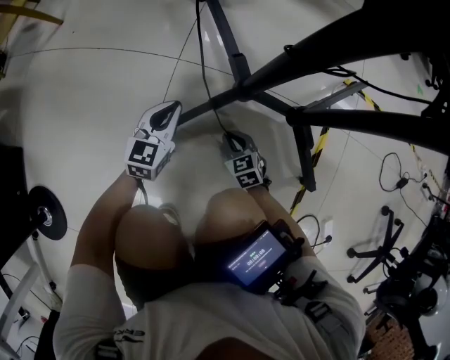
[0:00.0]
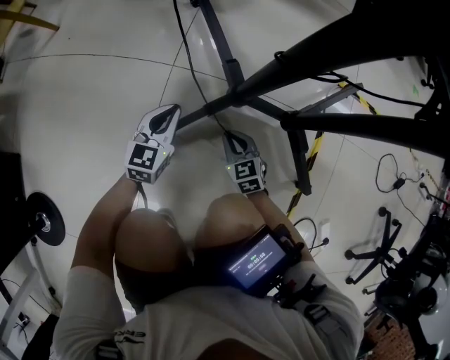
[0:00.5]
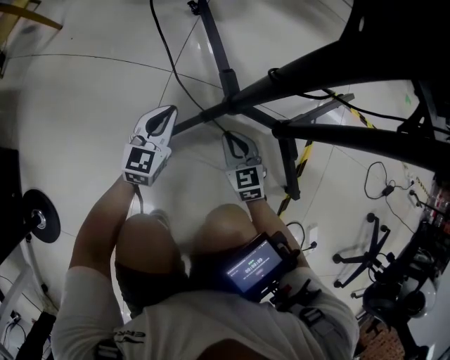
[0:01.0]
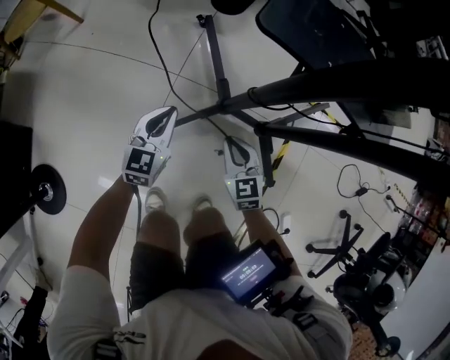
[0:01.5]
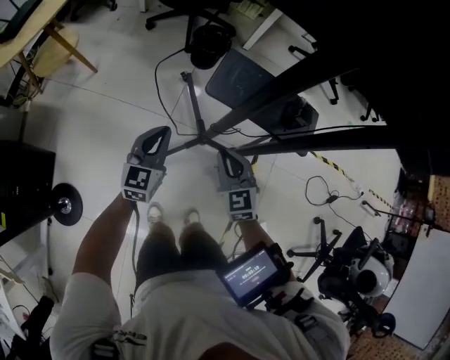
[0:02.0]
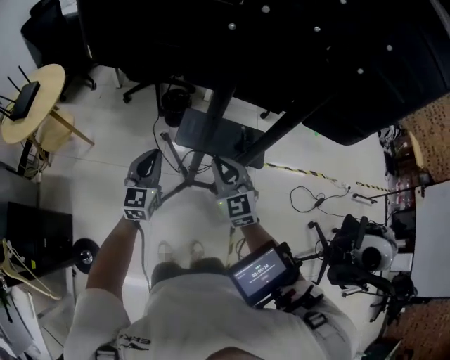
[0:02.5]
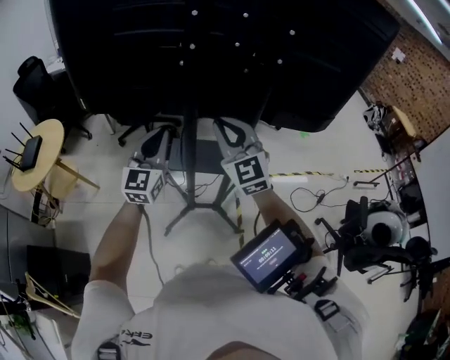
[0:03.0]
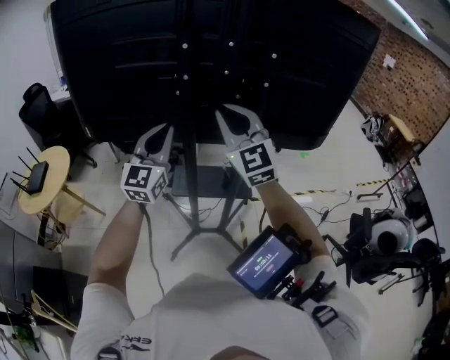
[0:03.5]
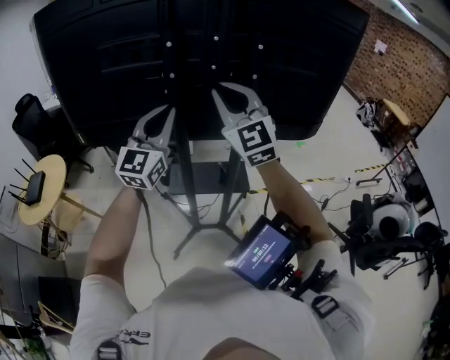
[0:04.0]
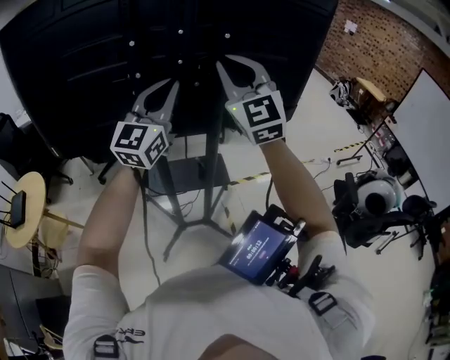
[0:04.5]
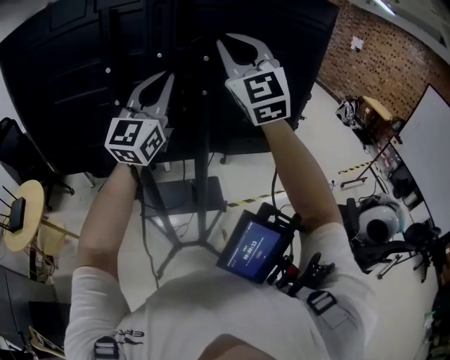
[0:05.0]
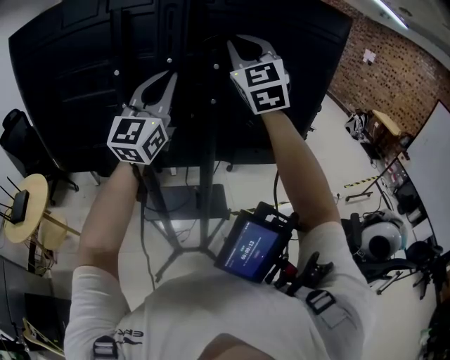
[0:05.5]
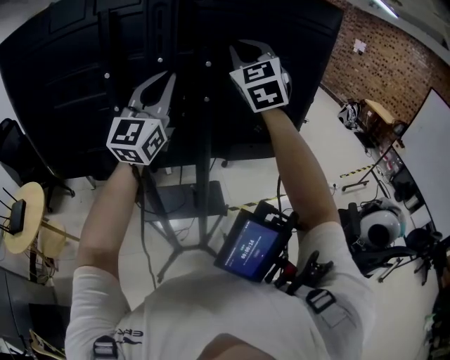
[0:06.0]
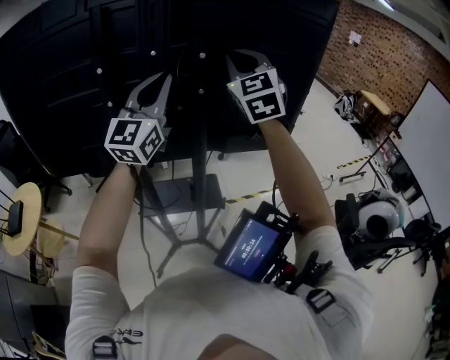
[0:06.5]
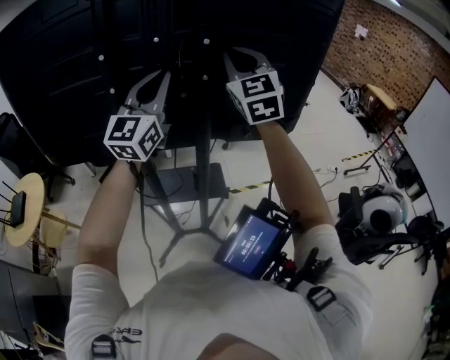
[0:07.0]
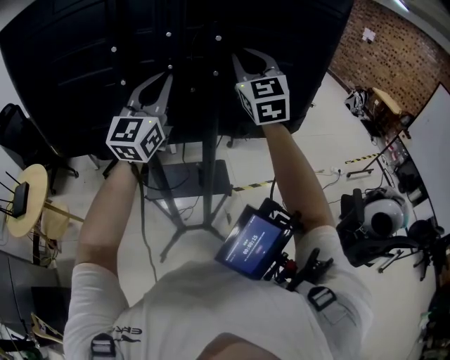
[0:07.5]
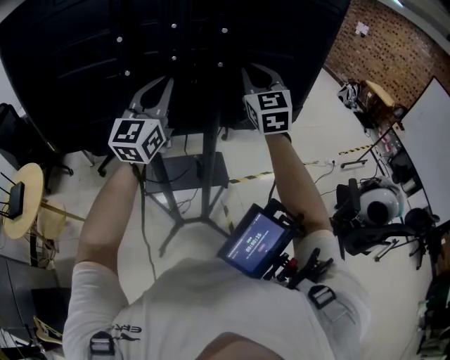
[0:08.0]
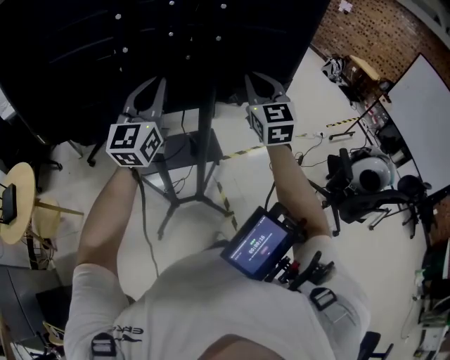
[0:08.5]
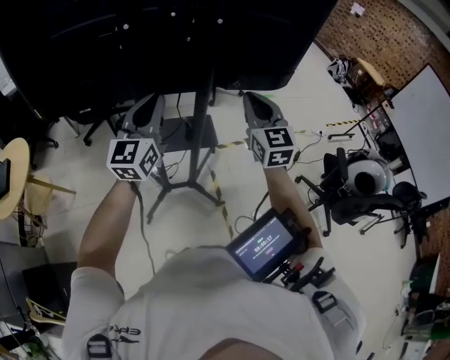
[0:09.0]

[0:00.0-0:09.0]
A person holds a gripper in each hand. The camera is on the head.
0:00.0 to 0:02.0: The grippers both shift upward by about 60 cm. The right gripper swivels about 30 degrees.
0:02.0 to 0:04.5: The two grippers go about 70 cm upward. The left gripper points its fingers about 40 degrees further upward. Meanwhile the right gripper angles its fingers upward, by some 40 degrees.
0:04.5 to 0:07.0: The left gripper shifts roughly 5 cm forward; the right gripper shifts roughly 15 cm forward and to the right.
0:07.0 to 0:09.0: The two grippers go some 25 cm downward and backward.

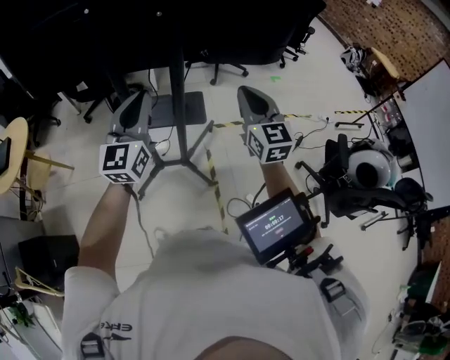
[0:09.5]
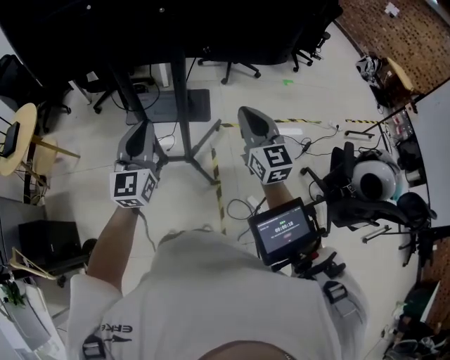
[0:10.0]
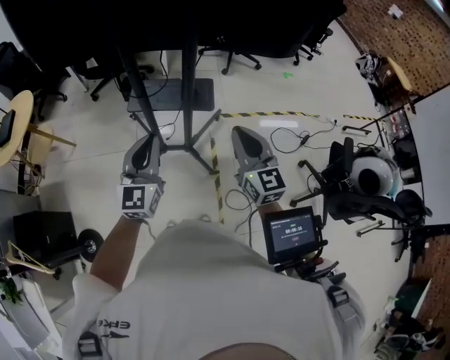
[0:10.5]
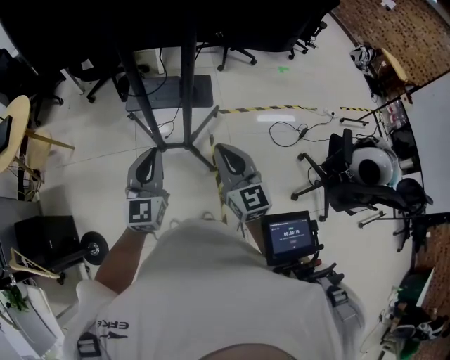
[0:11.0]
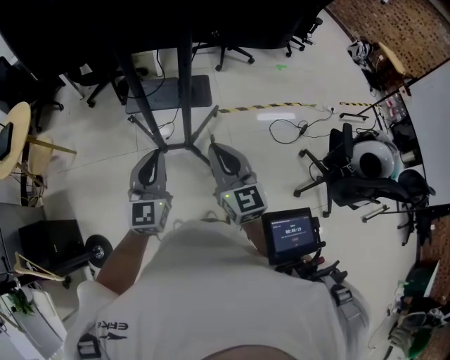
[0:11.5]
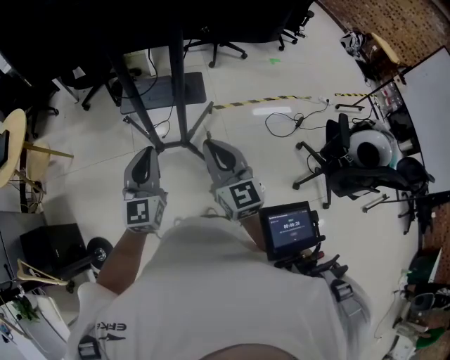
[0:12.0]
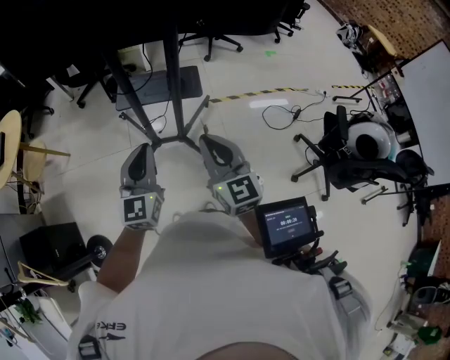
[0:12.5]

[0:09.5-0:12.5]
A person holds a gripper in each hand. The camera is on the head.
0:09.5 to 0:11.0: The right gripper goes approximately 20 cm backward, downward and to the left. Meanwhile the left gripper goes some 20 cm downward and backward.
0:11.0 to 0:12.5: There are only small adjustments of the grippers.

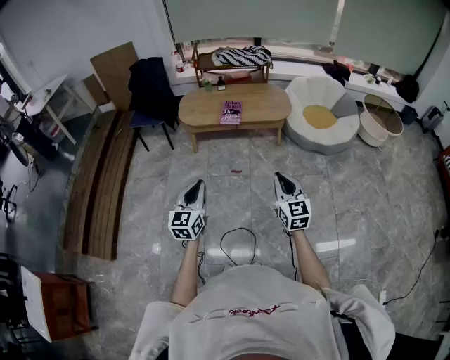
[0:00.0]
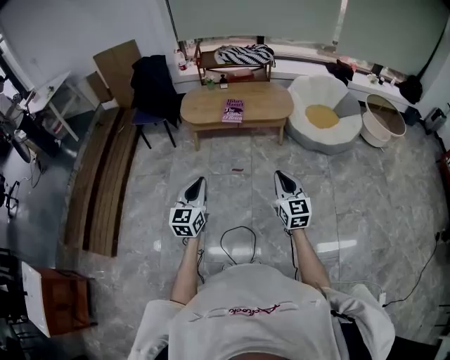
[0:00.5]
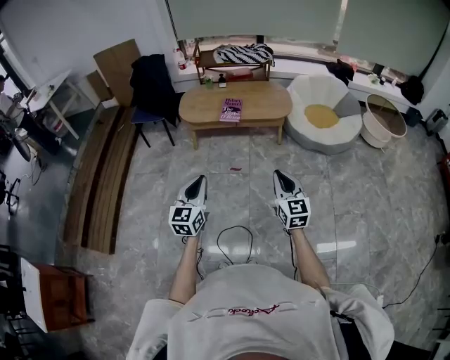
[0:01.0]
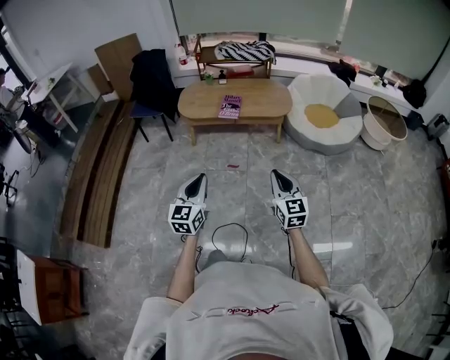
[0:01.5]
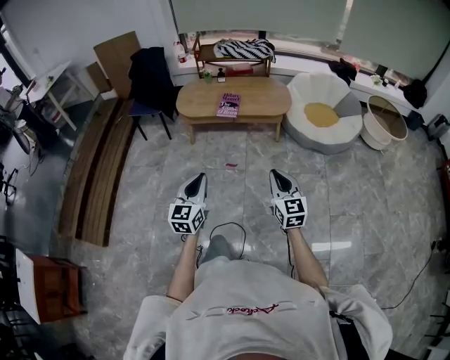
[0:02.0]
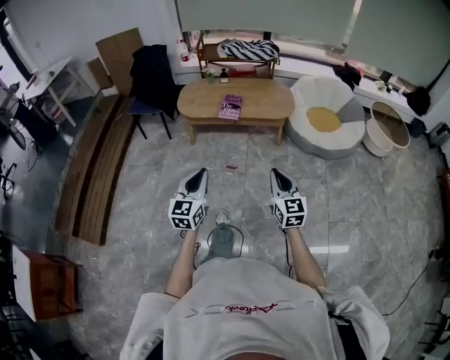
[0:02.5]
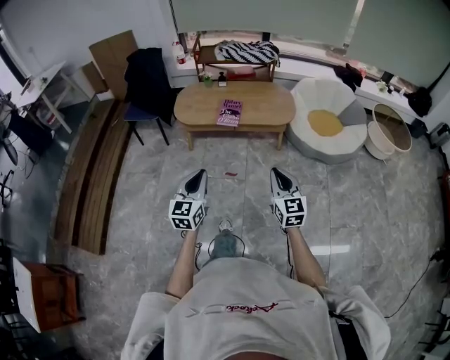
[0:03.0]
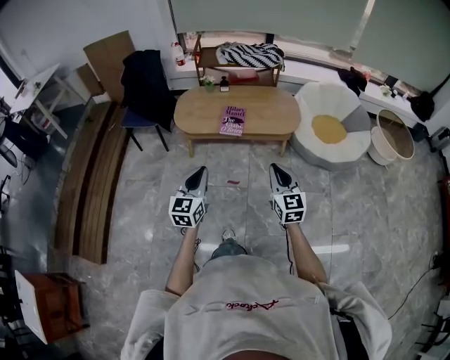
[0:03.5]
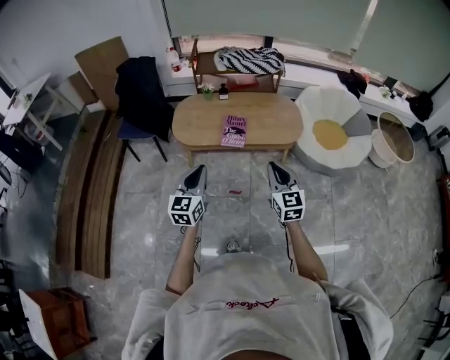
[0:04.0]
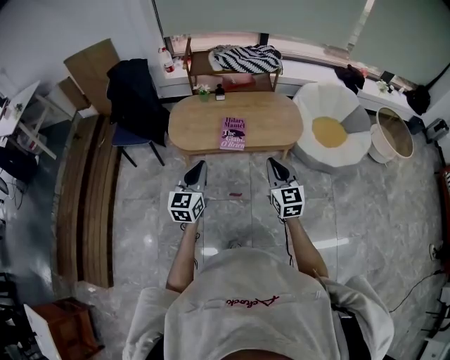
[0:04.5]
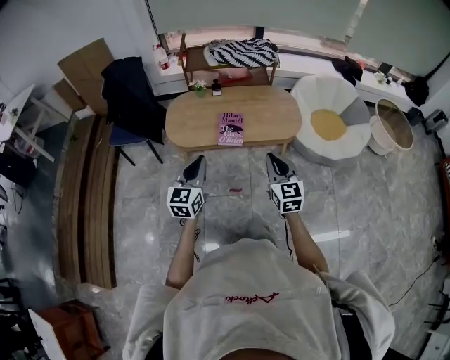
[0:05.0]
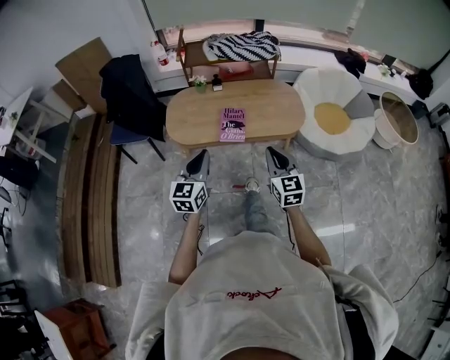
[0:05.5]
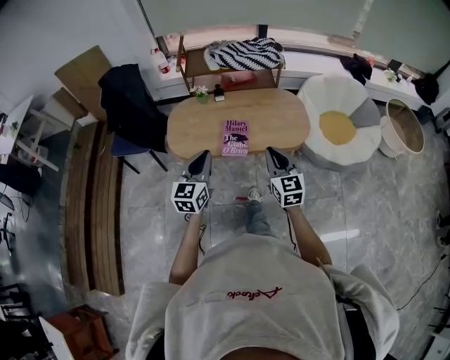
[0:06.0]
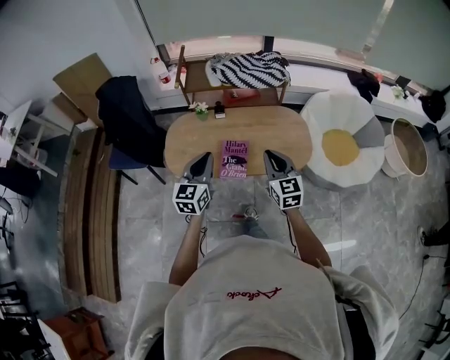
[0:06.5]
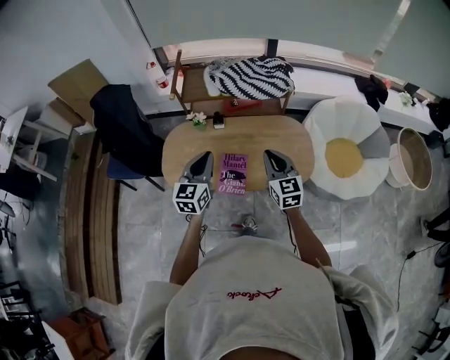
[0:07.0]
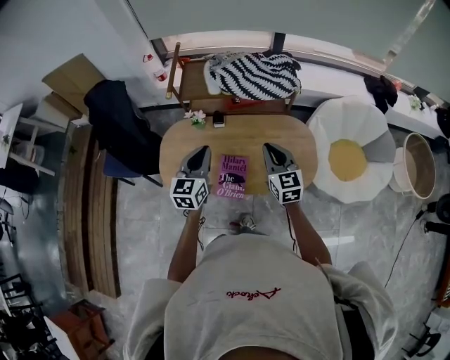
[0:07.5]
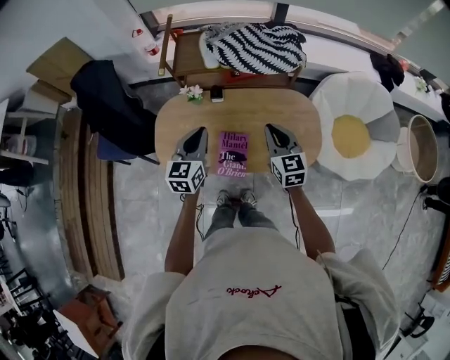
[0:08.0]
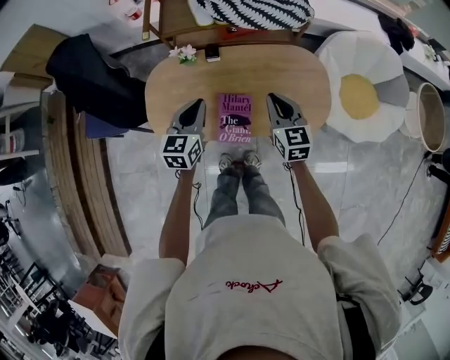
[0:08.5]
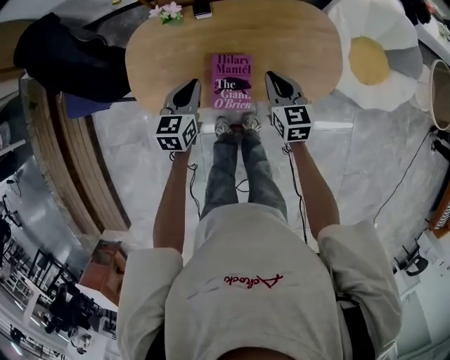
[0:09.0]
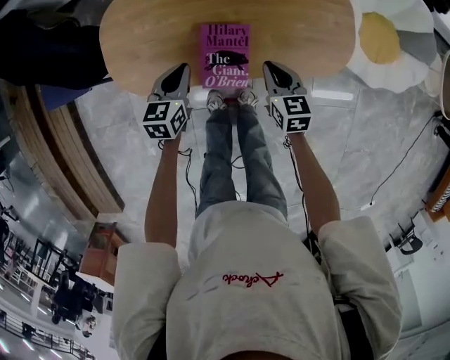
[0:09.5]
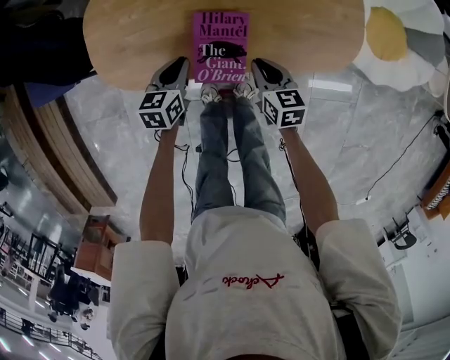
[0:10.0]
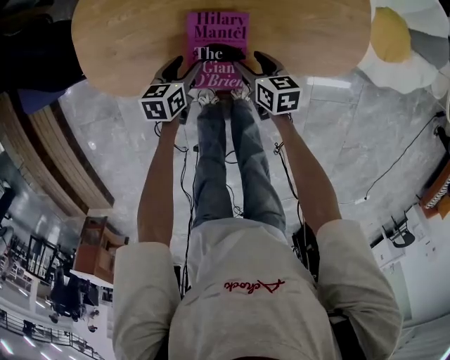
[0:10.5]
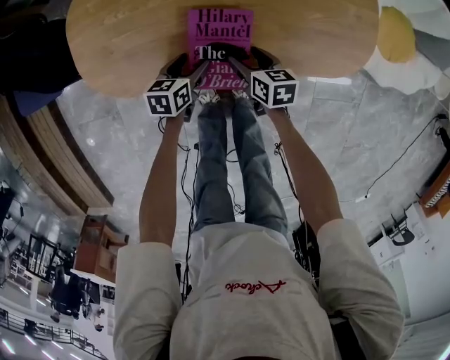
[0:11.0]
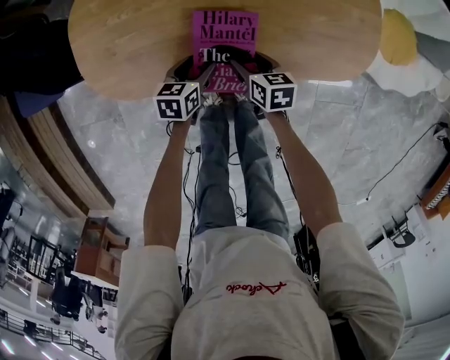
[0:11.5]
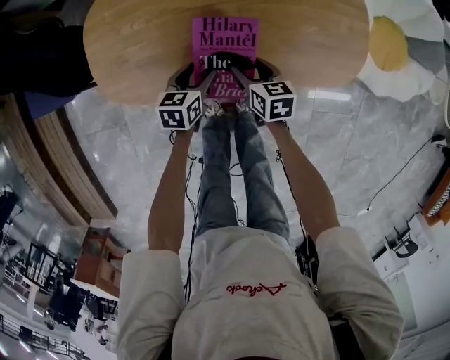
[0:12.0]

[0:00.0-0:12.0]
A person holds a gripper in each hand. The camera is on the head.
0:00.0 to 0:02.0: Both grippers travel together to the right, roughly 5 cm.
0:02.0 to 0:04.0: Both grippers travel together forward, roughly 35 cm.
0:04.0 to 0:06.0: The grippers both shift forward by roughly 20 cm.
0:06.0 to 0:08.0: The two grippers go about 35 cm forward.
0:08.0 to 0:10.0: The grippers both shift downward by roughly 35 cm. The right gripper changes its angle by approximately 30 degrees, while the left gripper rotates some 30 degrees.
0:10.0 to 0:12.0: The right gripper opens. The left gripper opens.

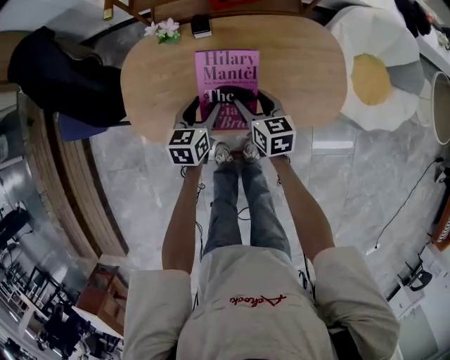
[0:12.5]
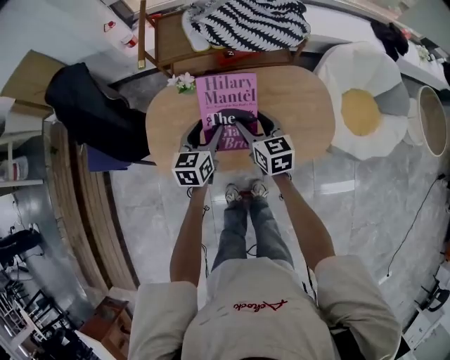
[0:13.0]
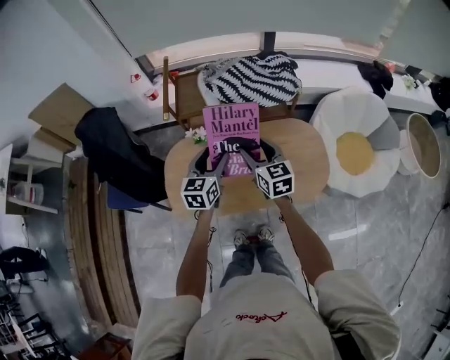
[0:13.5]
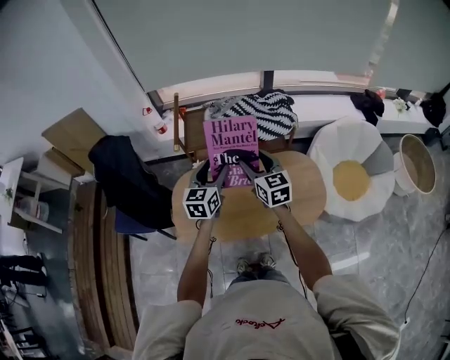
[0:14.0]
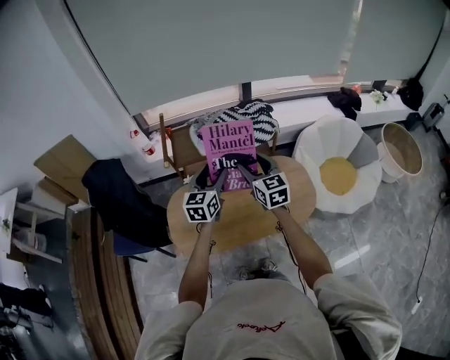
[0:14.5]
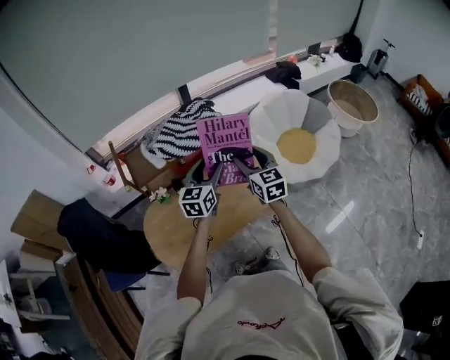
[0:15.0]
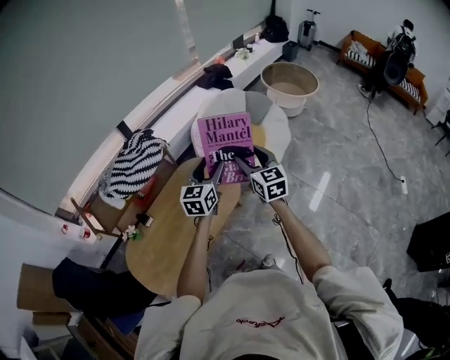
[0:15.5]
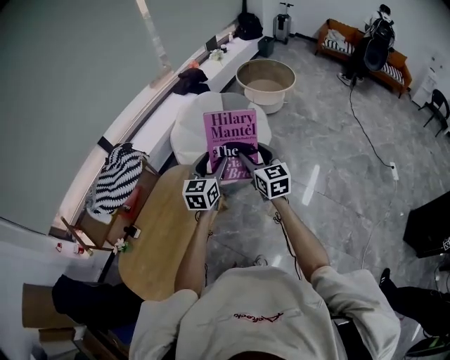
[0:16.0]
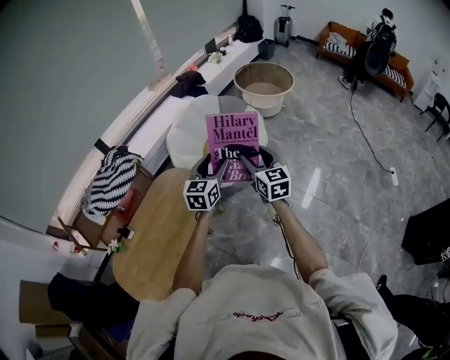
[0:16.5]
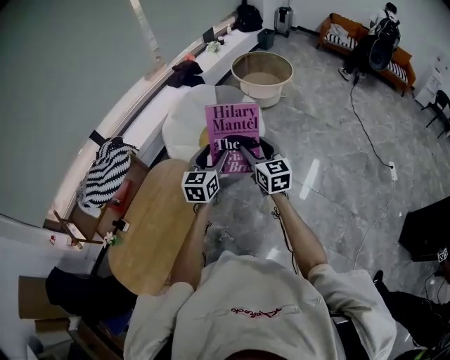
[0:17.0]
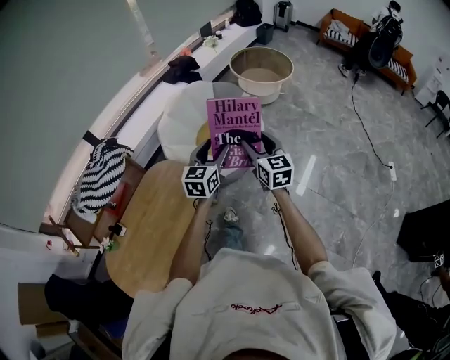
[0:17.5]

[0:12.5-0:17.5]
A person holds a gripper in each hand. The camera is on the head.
0:12.5 to 0:15.0: Both grippers move upward, roughly 35 cm. The left gripper swivels approximately 40 degrees; the right gripper changes its angle by about 40 degrees.
0:15.0 to 0:17.5: The two grippers travel together, approximately 50 cm. The right gripper rotates about 30 degrees; the left gripper swivels approximately 30 degrees.
